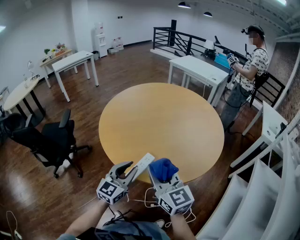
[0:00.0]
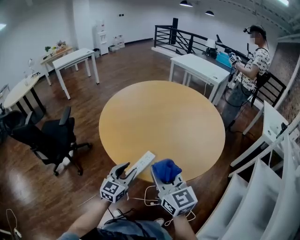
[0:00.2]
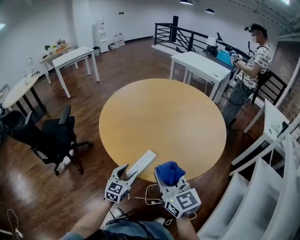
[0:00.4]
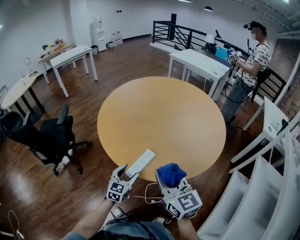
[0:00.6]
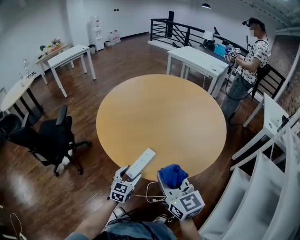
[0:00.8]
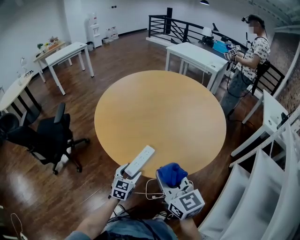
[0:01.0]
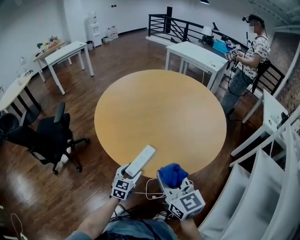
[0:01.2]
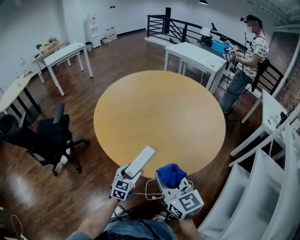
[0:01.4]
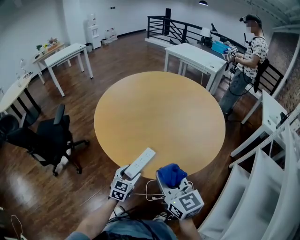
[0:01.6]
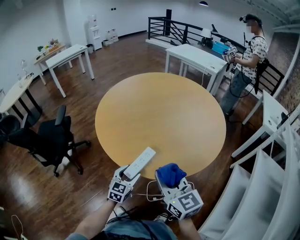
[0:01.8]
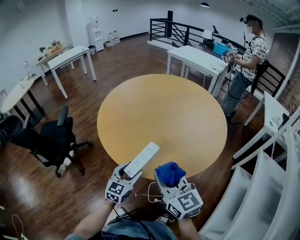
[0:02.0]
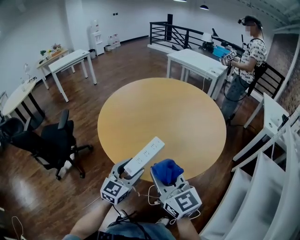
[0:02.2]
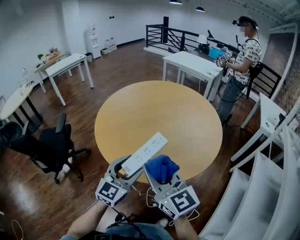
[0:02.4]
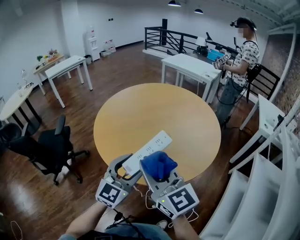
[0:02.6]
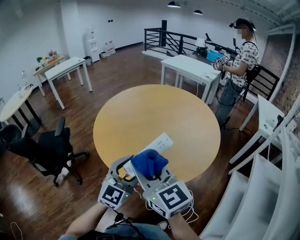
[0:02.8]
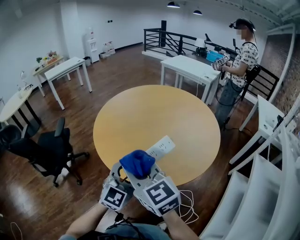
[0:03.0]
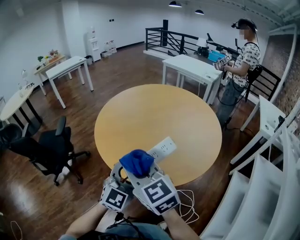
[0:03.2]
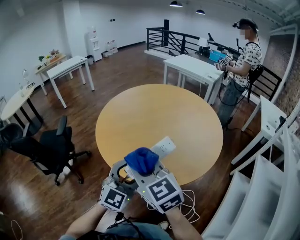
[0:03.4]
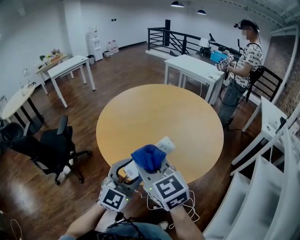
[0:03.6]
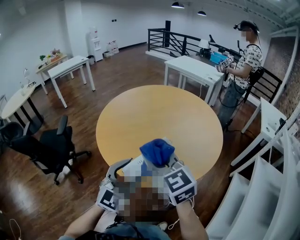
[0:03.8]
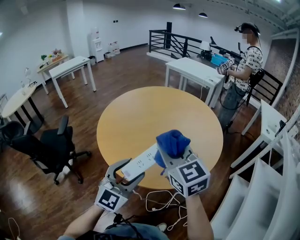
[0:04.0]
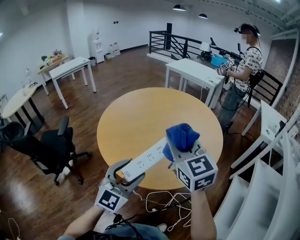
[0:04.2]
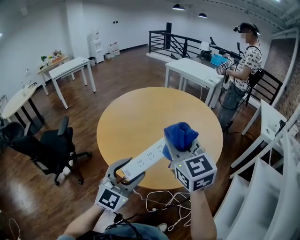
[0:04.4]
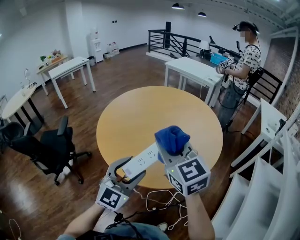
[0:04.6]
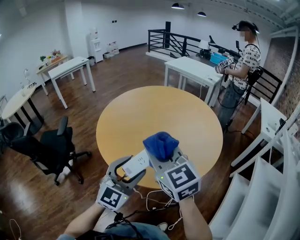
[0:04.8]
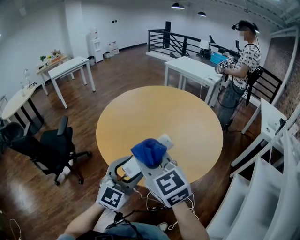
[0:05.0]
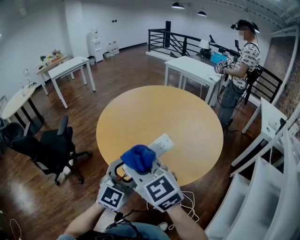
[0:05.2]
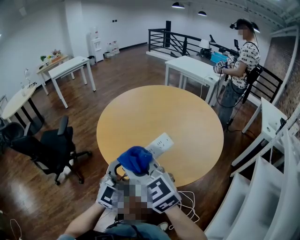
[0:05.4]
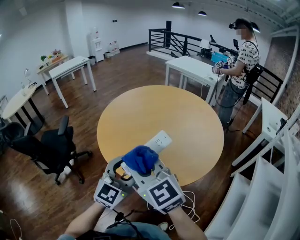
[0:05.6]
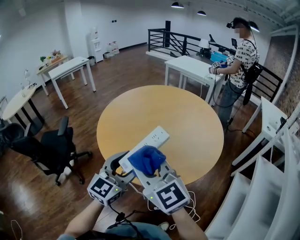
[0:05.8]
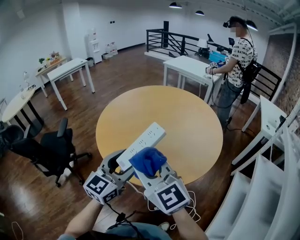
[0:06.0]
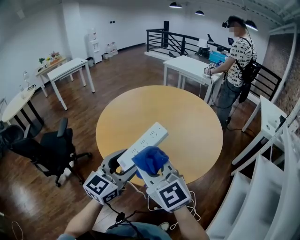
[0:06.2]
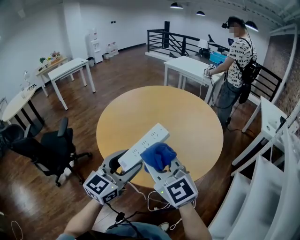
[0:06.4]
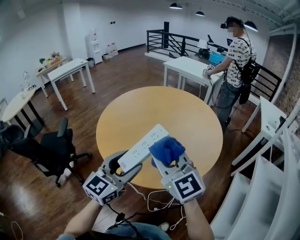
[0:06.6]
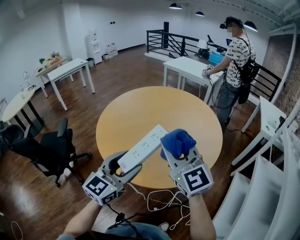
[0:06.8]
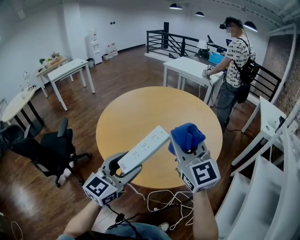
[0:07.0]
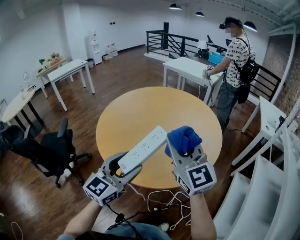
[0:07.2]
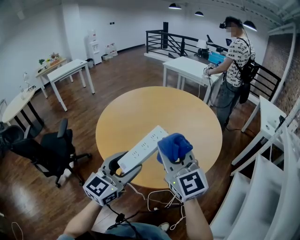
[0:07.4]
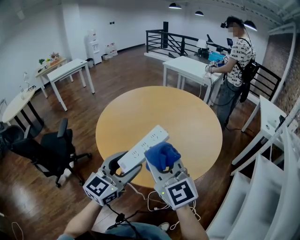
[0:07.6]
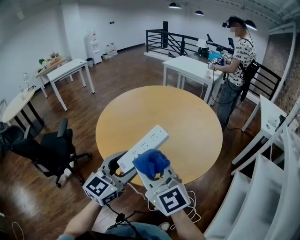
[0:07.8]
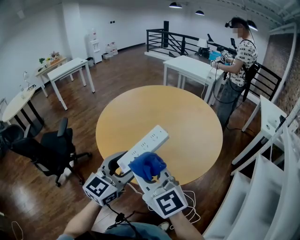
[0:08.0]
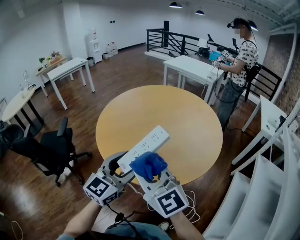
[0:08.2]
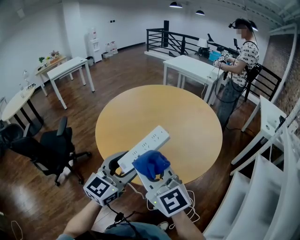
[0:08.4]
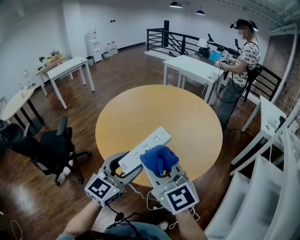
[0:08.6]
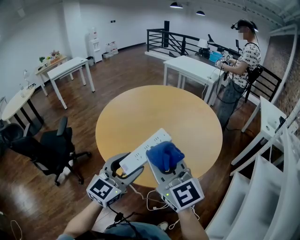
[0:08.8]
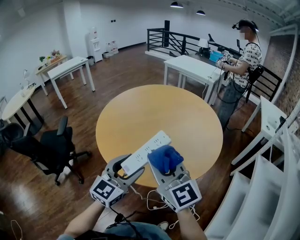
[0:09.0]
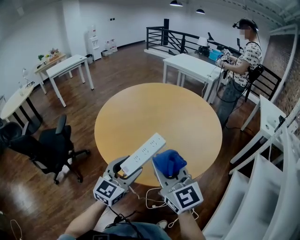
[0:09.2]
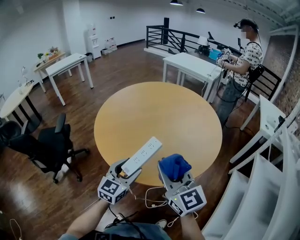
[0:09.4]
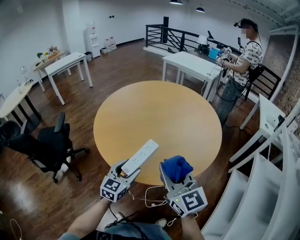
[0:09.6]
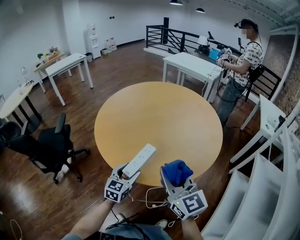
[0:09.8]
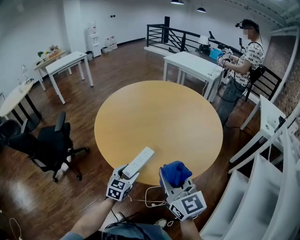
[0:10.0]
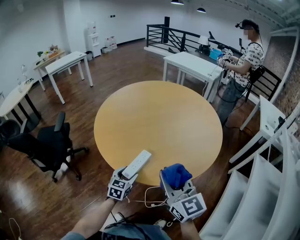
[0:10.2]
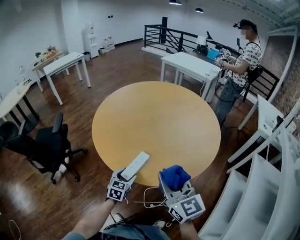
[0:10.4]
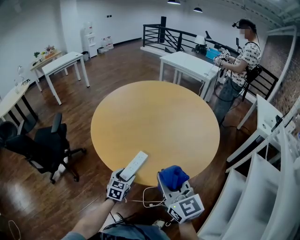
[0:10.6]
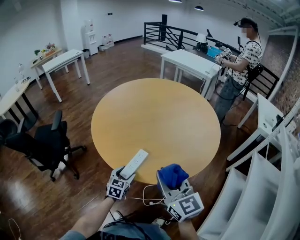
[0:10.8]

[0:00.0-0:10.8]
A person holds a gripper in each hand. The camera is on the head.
0:00.0 to 0:01.6: The right gripper moves roughly 5 cm. The left gripper heads downward, covering approximately 20 cm, swivels some 20 degrees, and opens.
0:01.6 to 0:03.0: The left gripper moves upward, roughly 25 cm, and rotates roughly 30 degrees. The right gripper moves upward and to the left, about 15 cm.
0:03.0 to 0:04.6: The right gripper shifts some 10 cm to the right and forward.
0:04.6 to 0:06.2: The right gripper goes approximately 10 cm to the left and backward.
0:06.2 to 0:07.8: The right gripper moves roughly 10 cm to the right and comes back.
0:07.8 to 0:09.2: The right gripper moves to the right, some 5 cm, while the left gripper moves downward, roughly 5 cm.
0:09.2 to 0:10.8: The left gripper is displaced downward by about 25 cm, and rotates roughly 30 degrees. The right gripper is displaced downward by about 5 cm.

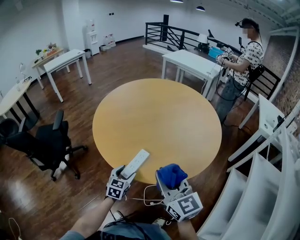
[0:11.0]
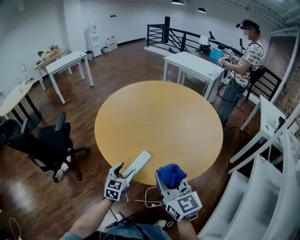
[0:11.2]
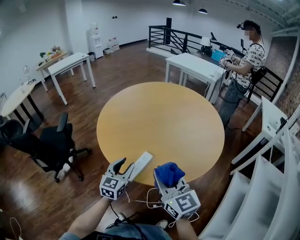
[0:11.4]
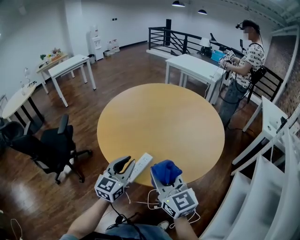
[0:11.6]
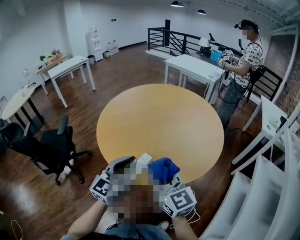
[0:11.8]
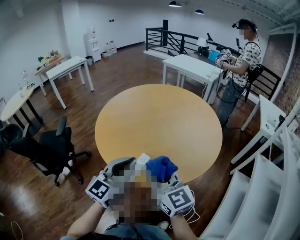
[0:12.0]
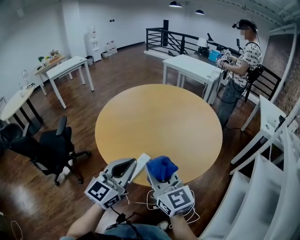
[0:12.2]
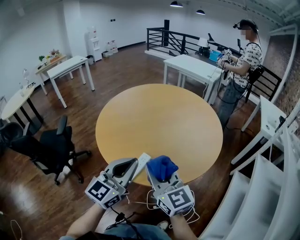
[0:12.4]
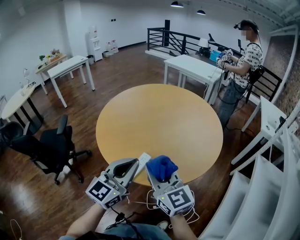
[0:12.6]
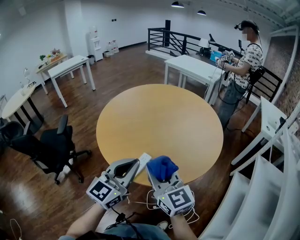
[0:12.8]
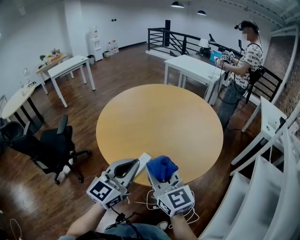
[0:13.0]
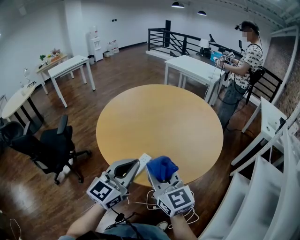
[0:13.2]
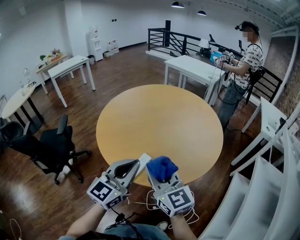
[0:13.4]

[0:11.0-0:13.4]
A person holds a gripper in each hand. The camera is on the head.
0:11.0 to 0:12.2: The left gripper heads upward, covering some 30 cm, tilts its fingers about 40 degrees upward, and closes. Meanwhile the right gripper moves some 5 cm.
0:12.2 to 0:13.4: Both grippers stay put.

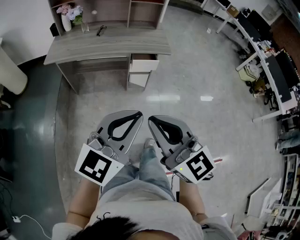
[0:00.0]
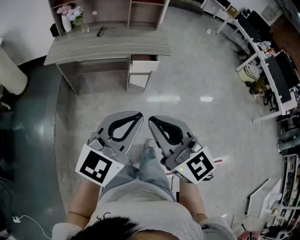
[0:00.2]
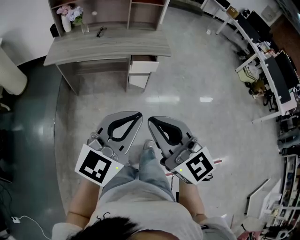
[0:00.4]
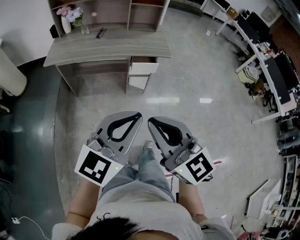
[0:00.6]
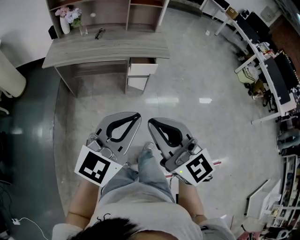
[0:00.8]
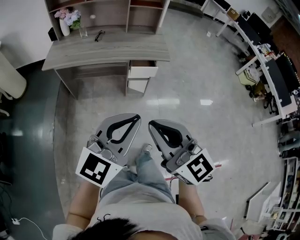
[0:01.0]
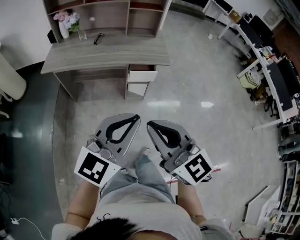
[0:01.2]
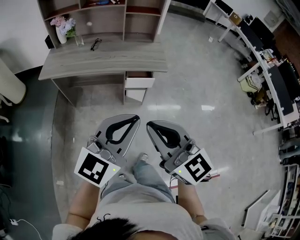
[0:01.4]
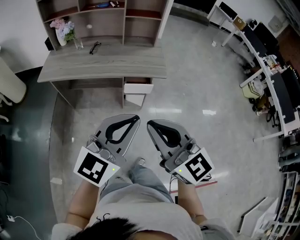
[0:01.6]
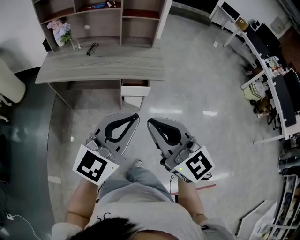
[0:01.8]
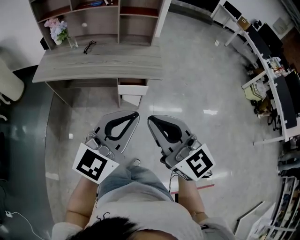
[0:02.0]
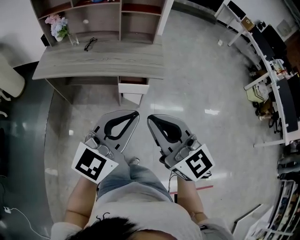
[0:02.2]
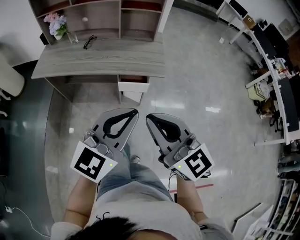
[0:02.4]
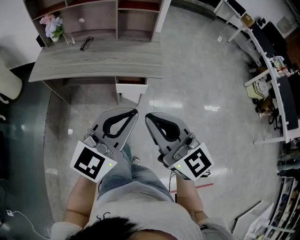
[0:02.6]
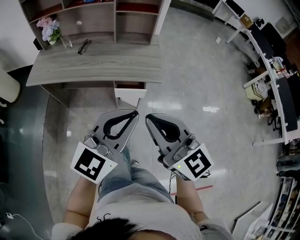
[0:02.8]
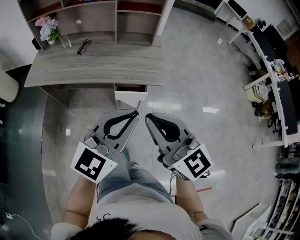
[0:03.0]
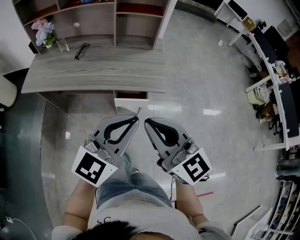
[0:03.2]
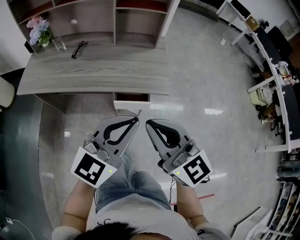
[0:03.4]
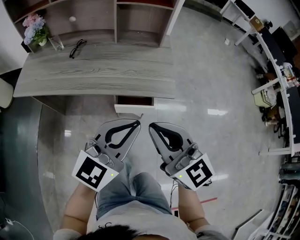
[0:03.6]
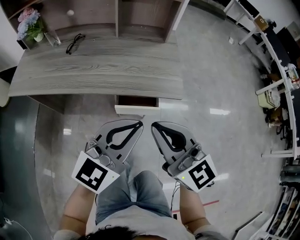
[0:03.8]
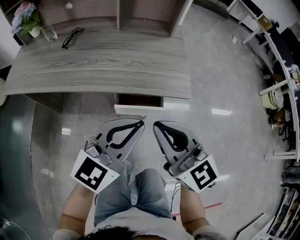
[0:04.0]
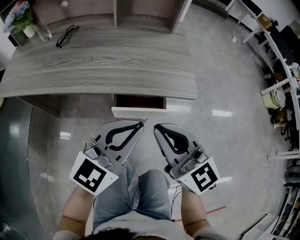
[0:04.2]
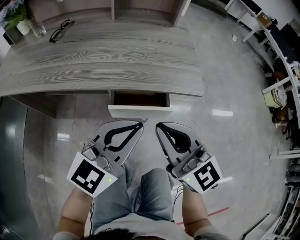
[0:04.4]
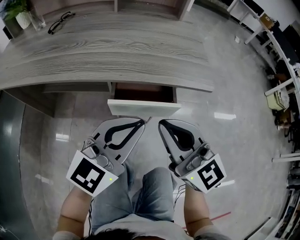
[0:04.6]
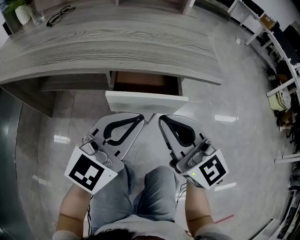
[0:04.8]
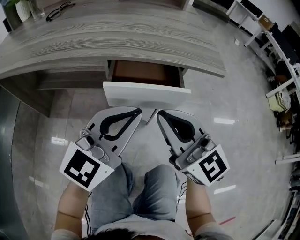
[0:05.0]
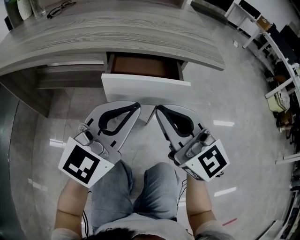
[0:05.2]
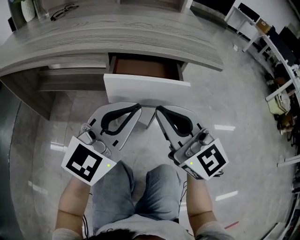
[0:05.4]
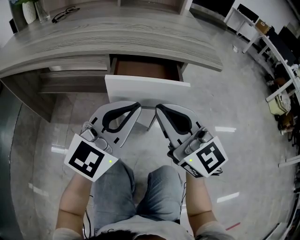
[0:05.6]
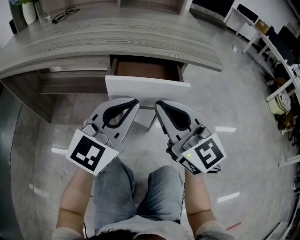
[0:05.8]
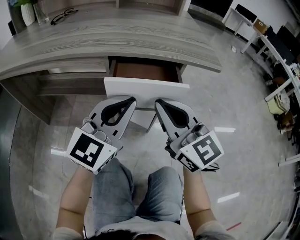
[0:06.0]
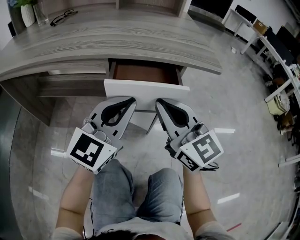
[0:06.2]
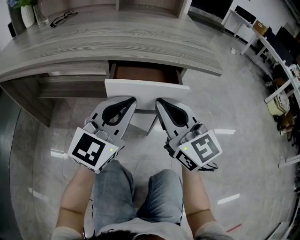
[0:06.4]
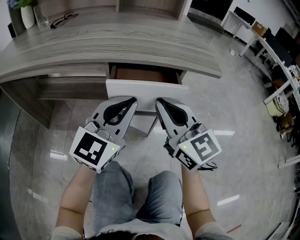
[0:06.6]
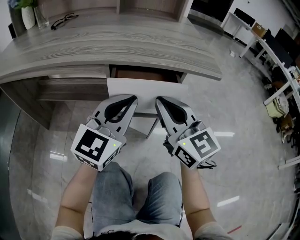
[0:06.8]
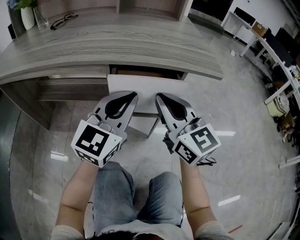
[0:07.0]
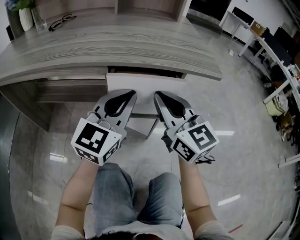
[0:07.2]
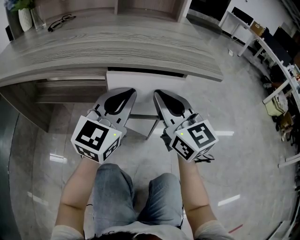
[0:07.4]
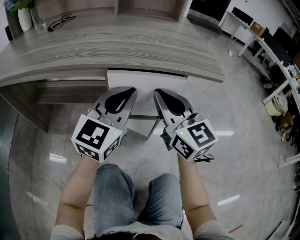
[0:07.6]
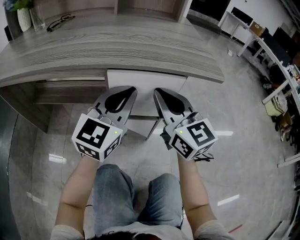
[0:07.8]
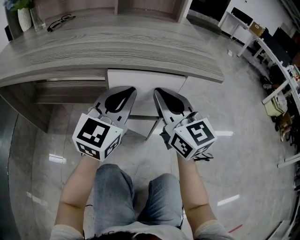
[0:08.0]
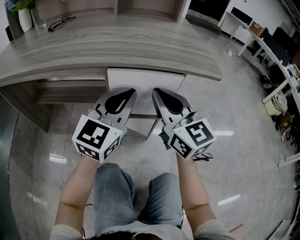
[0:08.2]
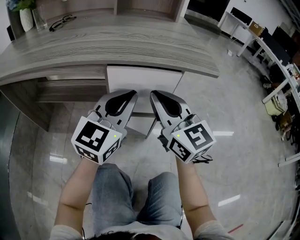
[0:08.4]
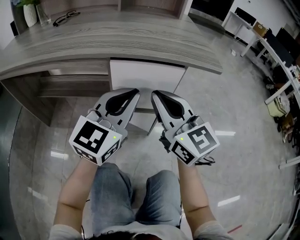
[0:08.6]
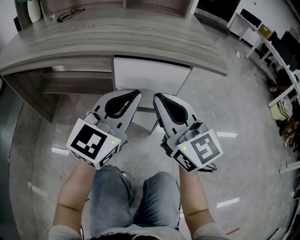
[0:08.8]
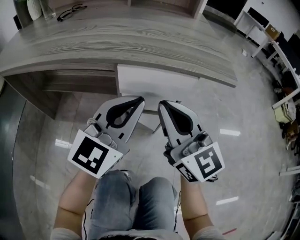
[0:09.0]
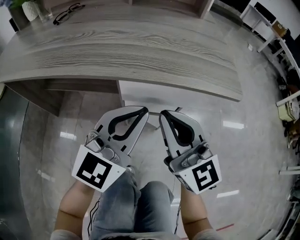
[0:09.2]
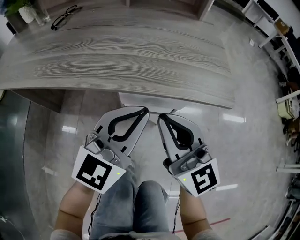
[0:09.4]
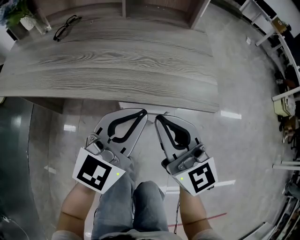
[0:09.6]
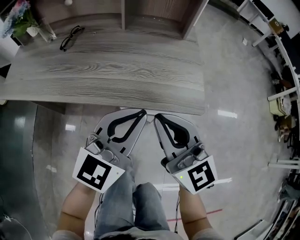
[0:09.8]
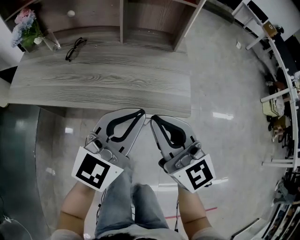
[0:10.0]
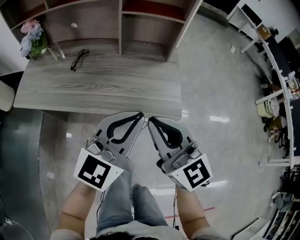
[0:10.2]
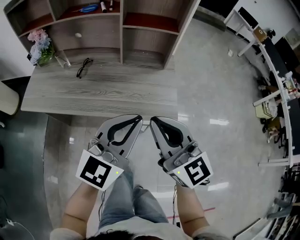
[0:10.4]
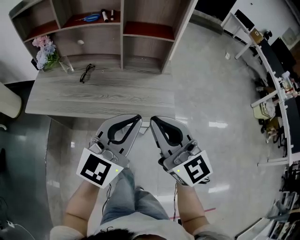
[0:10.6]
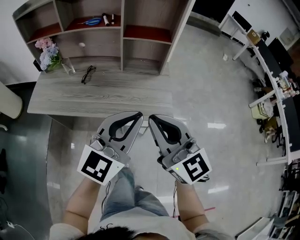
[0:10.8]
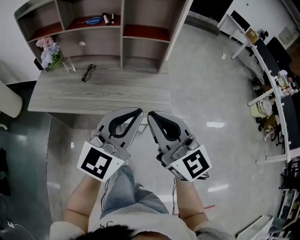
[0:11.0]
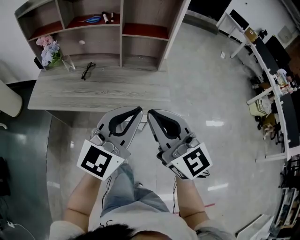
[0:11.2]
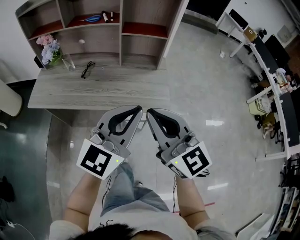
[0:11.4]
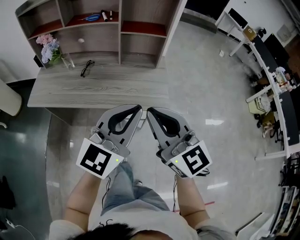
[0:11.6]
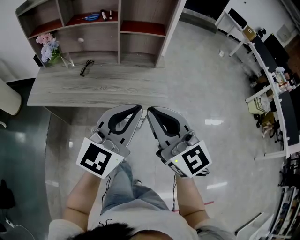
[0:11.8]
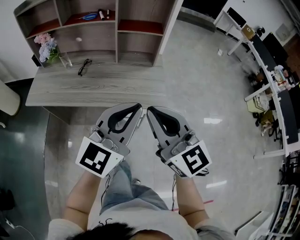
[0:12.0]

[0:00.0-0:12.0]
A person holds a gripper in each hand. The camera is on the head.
0:00.0 to 0:01.6: The two grippers go approximately 15 cm forward and to the right.
0:01.6 to 0:03.0: The left gripper moves forward and to the right, approximately 15 cm; the right gripper goes approximately 15 cm forward.
0:03.0 to 0:04.4: Both grippers travel together downward and forward, roughly 35 cm.
0:04.4 to 0:06.0: Both grippers move downward, approximately 10 cm.
0:06.0 to 0:07.6: The two grippers go approximately 5 cm forward.
0:07.6 to 0:09.0: The grippers both shift backward by about 5 cm.
0:09.0 to 0:10.4: Both grippers move upward, roughly 40 cm.
0:10.4 to 0:12.0: The left gripper goes approximately 10 cm upward and backward. Meanwhile the right gripper heads backward and upward, covering about 10 cm.
